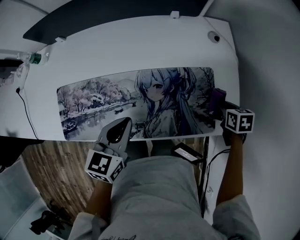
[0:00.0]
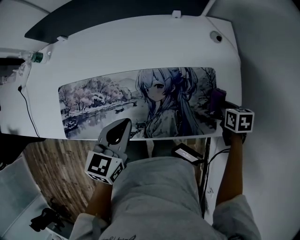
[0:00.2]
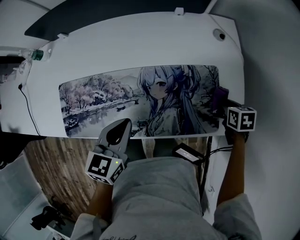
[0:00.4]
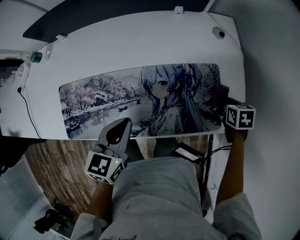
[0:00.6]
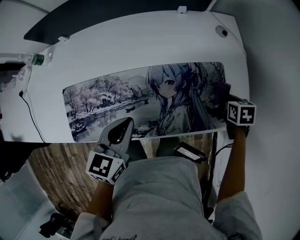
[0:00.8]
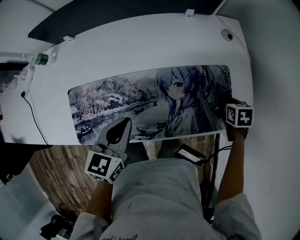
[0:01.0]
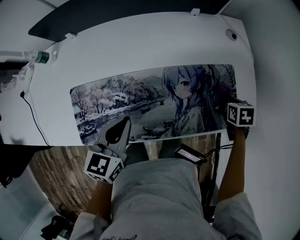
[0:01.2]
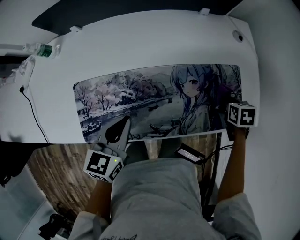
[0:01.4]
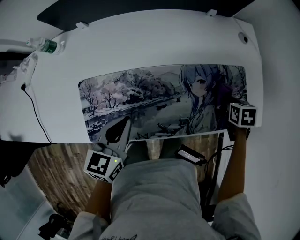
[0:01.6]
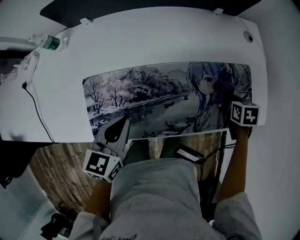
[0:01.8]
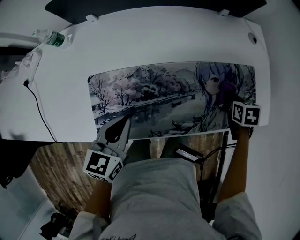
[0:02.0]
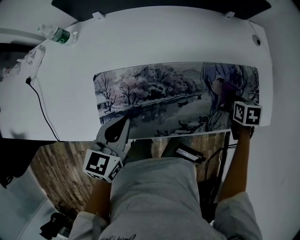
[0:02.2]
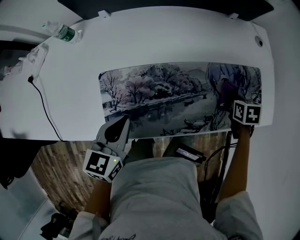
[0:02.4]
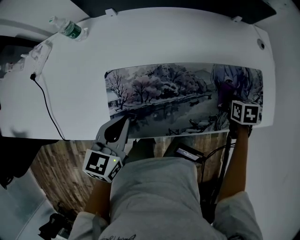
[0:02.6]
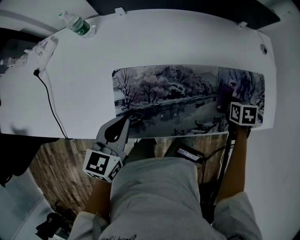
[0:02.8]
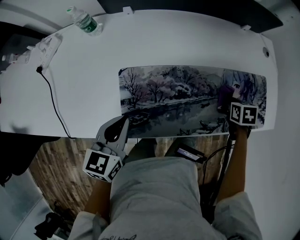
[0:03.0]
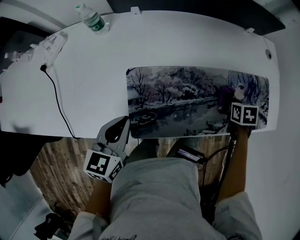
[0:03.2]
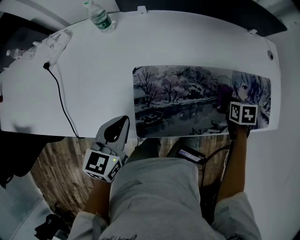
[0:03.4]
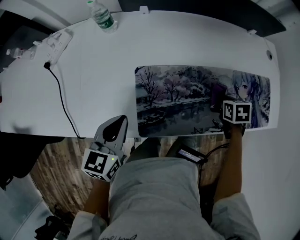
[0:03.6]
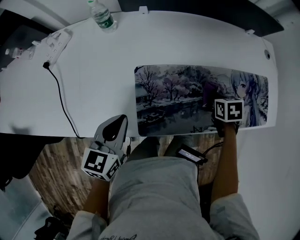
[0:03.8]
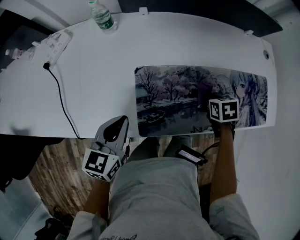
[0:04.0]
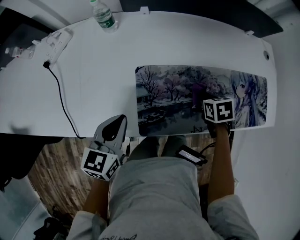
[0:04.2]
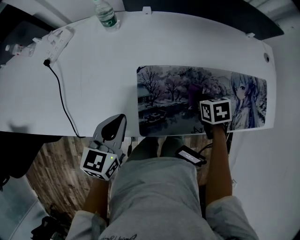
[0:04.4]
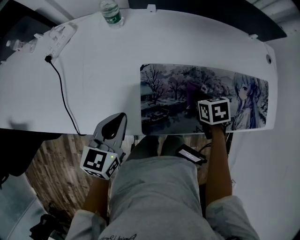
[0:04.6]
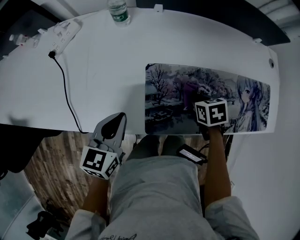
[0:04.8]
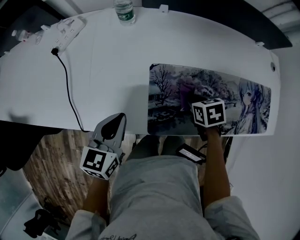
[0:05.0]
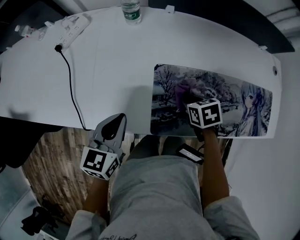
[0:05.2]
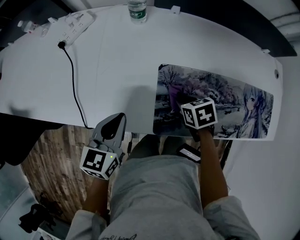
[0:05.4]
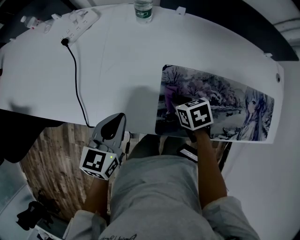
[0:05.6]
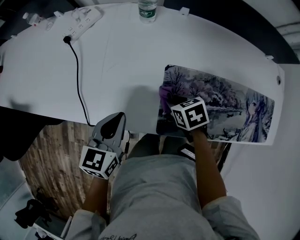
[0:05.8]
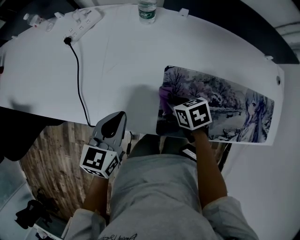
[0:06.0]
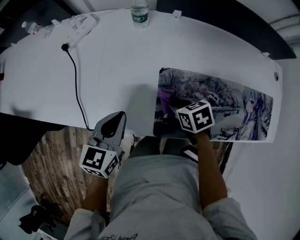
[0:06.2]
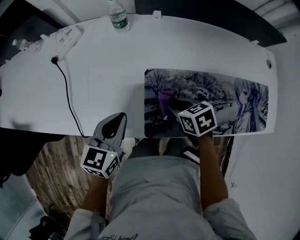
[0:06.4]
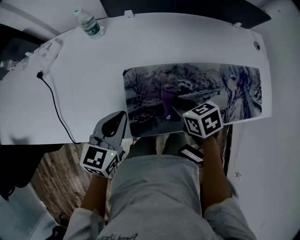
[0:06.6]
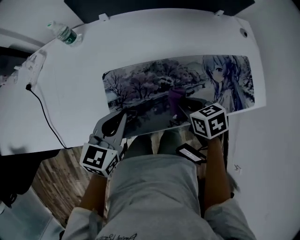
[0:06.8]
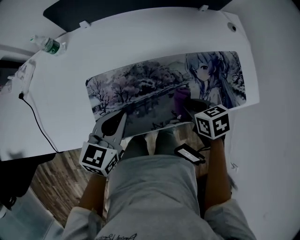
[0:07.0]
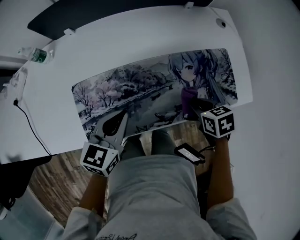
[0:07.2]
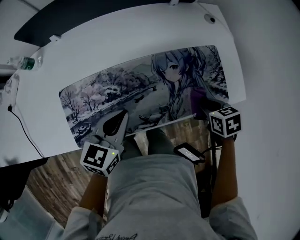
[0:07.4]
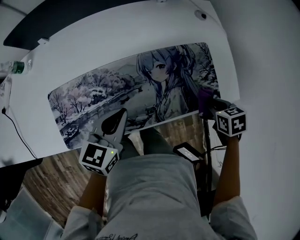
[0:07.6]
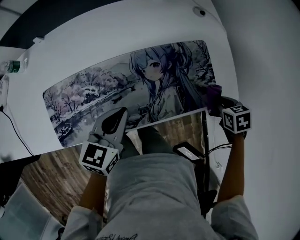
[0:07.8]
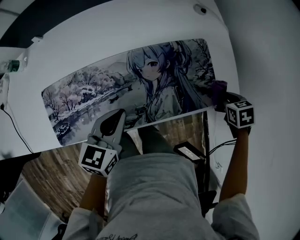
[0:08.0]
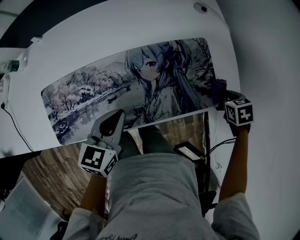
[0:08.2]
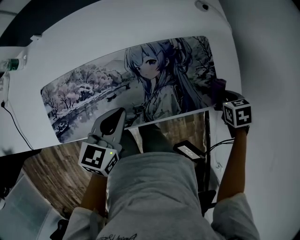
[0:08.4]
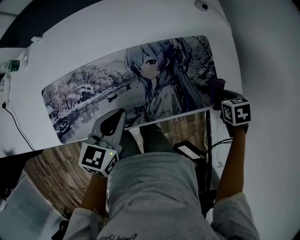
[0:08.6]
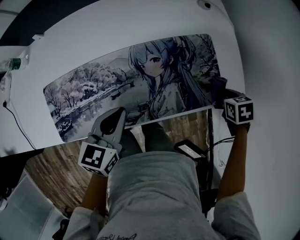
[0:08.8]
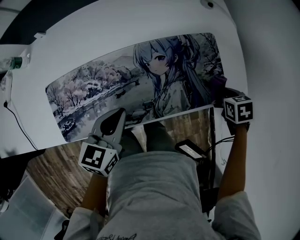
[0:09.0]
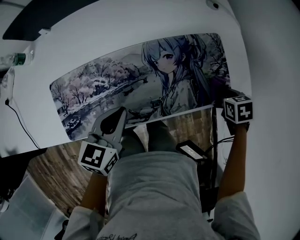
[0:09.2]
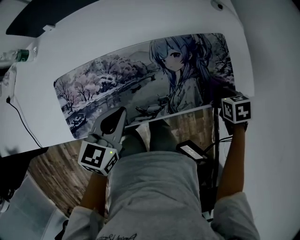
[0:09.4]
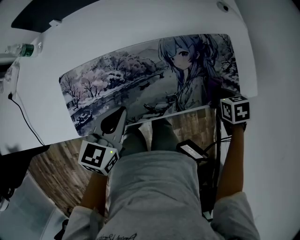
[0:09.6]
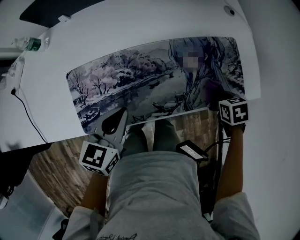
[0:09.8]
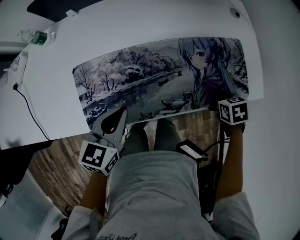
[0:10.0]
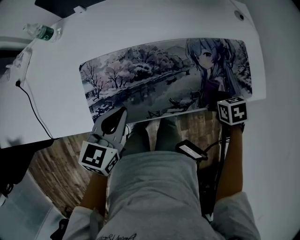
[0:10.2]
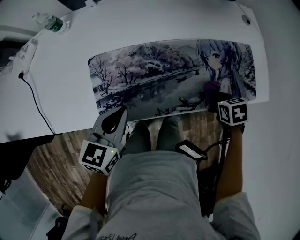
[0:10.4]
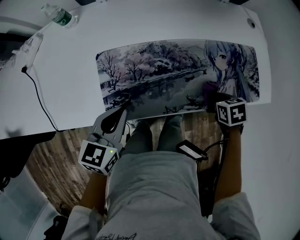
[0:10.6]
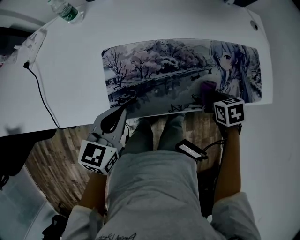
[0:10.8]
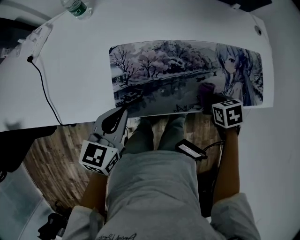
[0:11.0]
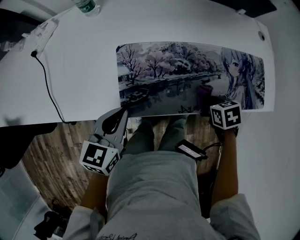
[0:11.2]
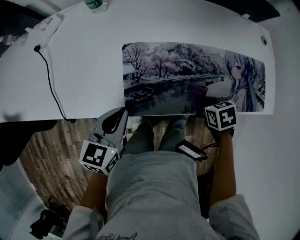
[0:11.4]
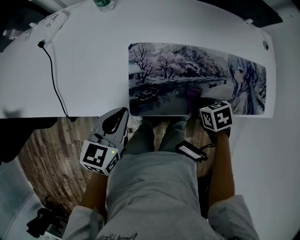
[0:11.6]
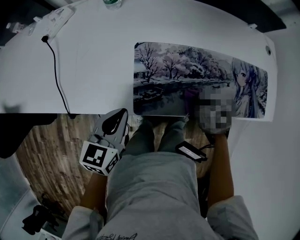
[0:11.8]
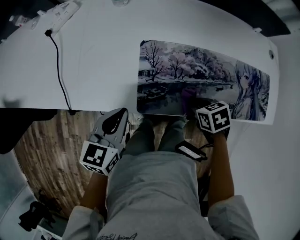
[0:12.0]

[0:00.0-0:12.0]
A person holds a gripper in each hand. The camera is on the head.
0.0 to 1.6 s: Both grippers travel together to the left, roughly 15 cm.
1.6 to 3.0 s: The two grippers go about 20 cm to the left.
3.0 to 4.4 s: The right gripper goes about 20 cm to the left. The left gripper moves to the left, roughly 10 cm.
4.4 to 6.0 s: The right gripper moves to the left, about 20 cm, and rotates about 20 degrees, while the left gripper travels to the left by about 10 cm.
6.0 to 7.6 s: The two grippers travel together, some 60 cm. The right gripper swivels about 30 degrees. Meanwhile the left gripper changes its angle by some 30 degrees.
9.0 to 10.4 s: Both grippers travel together to the left, some 25 cm.
10.4 to 12.0 s: The left gripper moves some 20 cm. The right gripper moves about 25 cm, and swivels about 20 degrees.

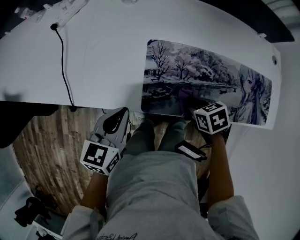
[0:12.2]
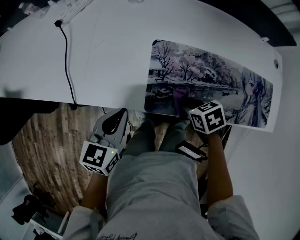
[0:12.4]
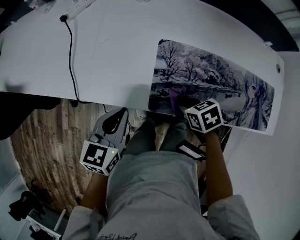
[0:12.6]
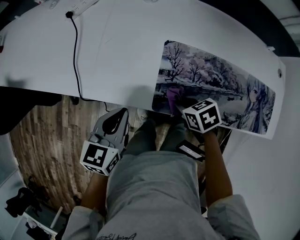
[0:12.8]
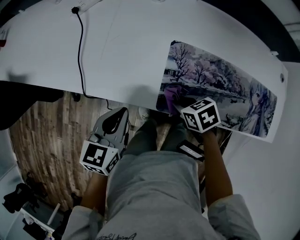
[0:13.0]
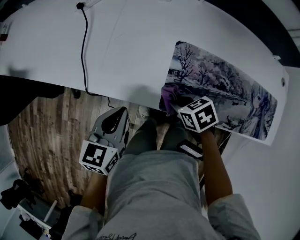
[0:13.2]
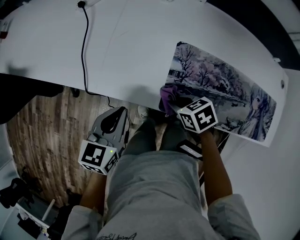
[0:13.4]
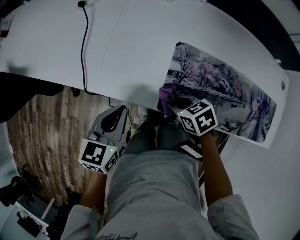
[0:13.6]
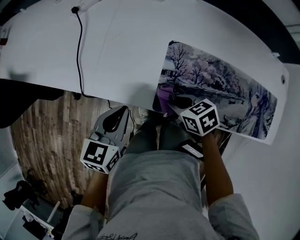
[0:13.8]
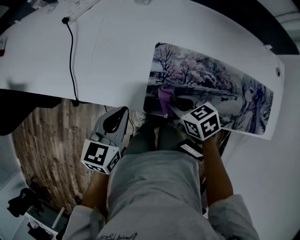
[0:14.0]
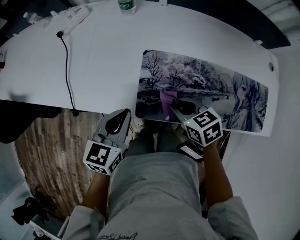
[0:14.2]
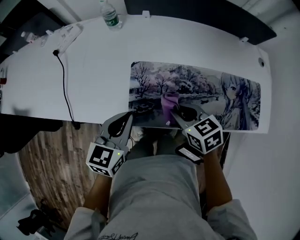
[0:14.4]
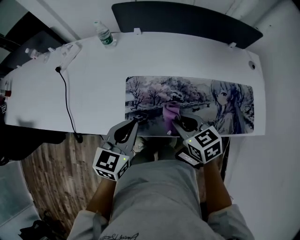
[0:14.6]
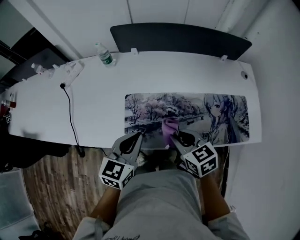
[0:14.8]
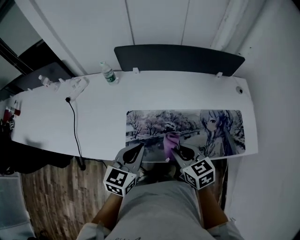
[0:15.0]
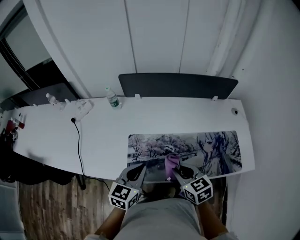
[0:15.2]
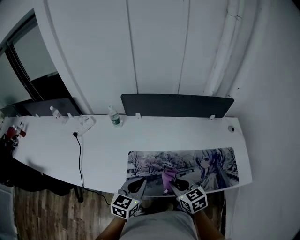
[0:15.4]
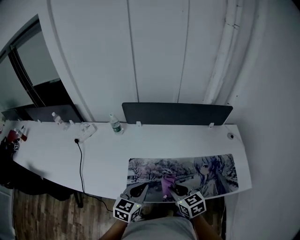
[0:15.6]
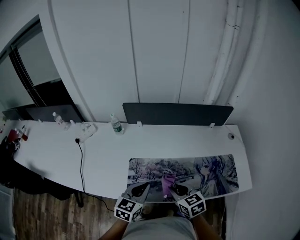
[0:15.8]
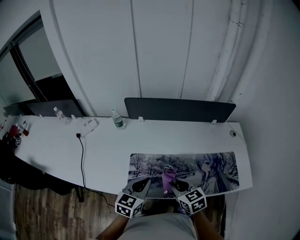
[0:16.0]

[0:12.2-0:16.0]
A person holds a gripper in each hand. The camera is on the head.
12.2 to 13.4 s: The left gripper shifts roughly 10 cm to the left. The right gripper travels to the left and forward by some 15 cm.
13.4 to 14.8 s: The right gripper changes place by some 25 cm, and swivels roughly 40 degrees, while the left gripper ends up some 25 cm from where it was, and turns by some 20 degrees.
14.8 to 16.0 s: The left gripper moves approximately 5 cm.

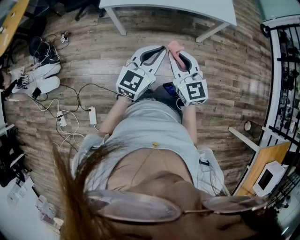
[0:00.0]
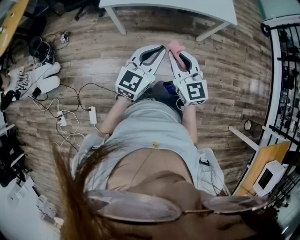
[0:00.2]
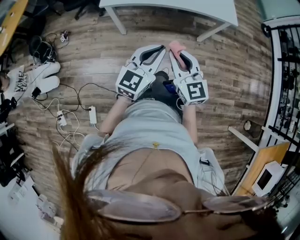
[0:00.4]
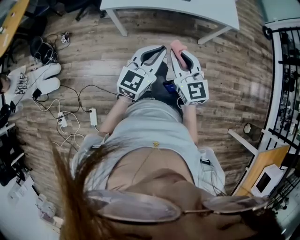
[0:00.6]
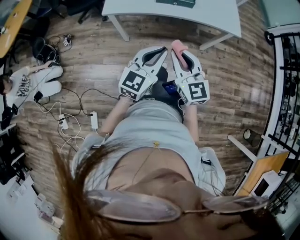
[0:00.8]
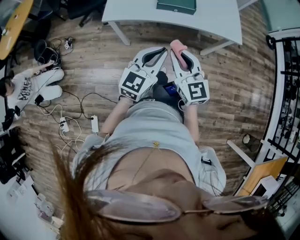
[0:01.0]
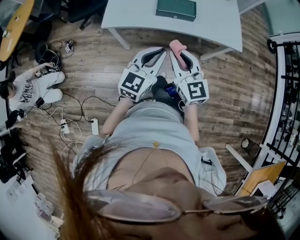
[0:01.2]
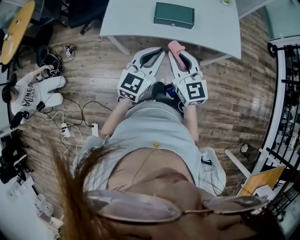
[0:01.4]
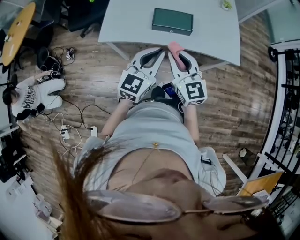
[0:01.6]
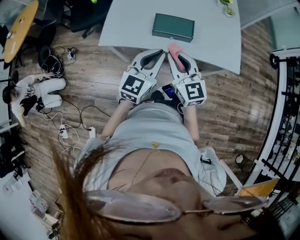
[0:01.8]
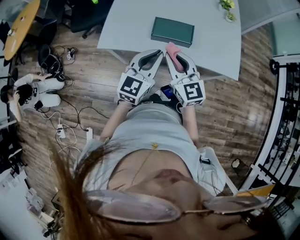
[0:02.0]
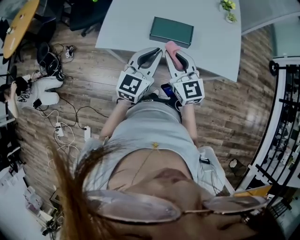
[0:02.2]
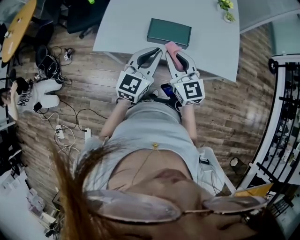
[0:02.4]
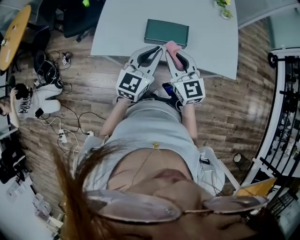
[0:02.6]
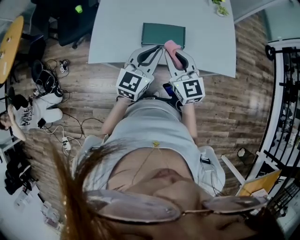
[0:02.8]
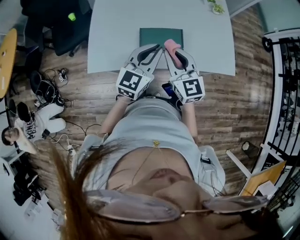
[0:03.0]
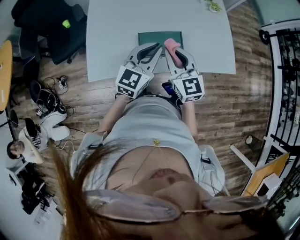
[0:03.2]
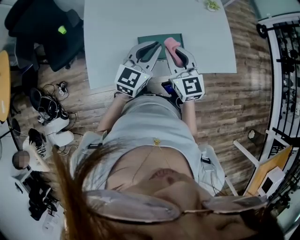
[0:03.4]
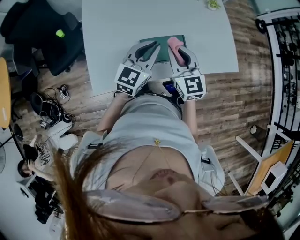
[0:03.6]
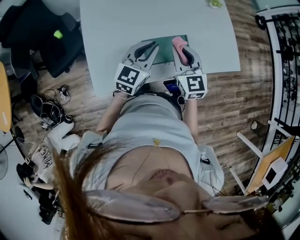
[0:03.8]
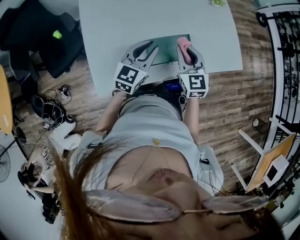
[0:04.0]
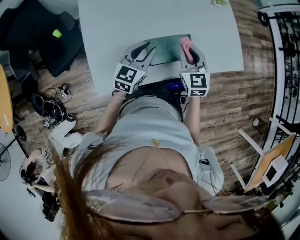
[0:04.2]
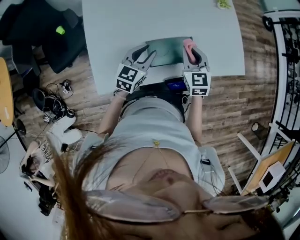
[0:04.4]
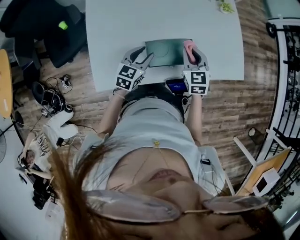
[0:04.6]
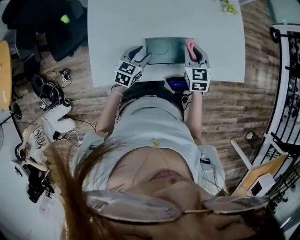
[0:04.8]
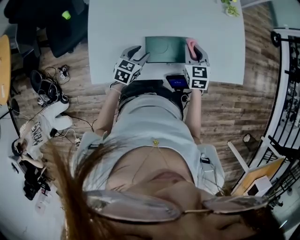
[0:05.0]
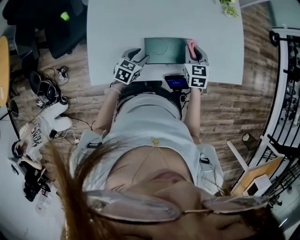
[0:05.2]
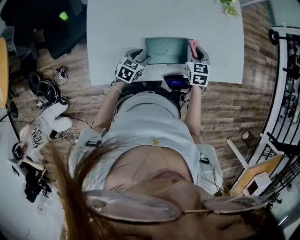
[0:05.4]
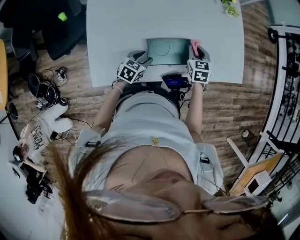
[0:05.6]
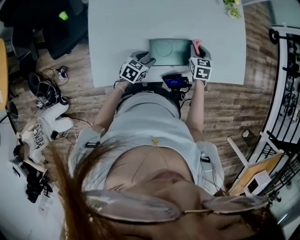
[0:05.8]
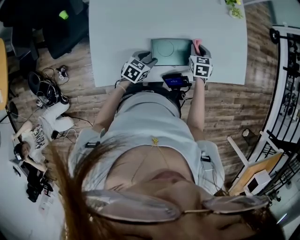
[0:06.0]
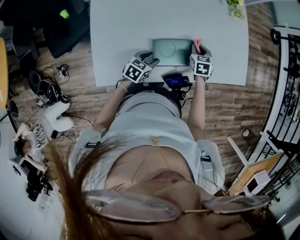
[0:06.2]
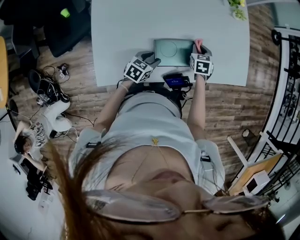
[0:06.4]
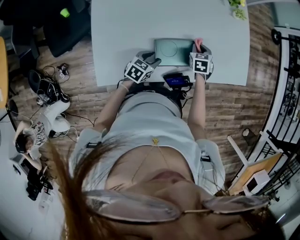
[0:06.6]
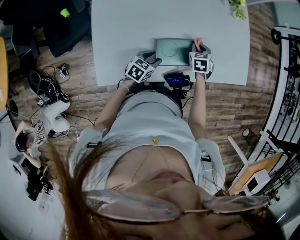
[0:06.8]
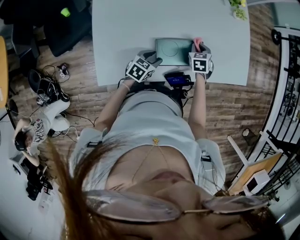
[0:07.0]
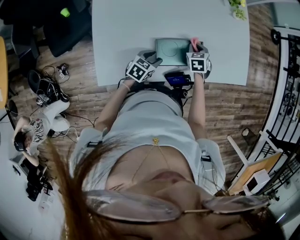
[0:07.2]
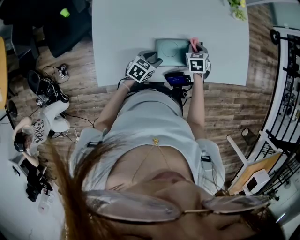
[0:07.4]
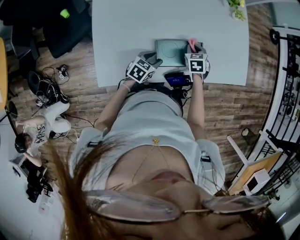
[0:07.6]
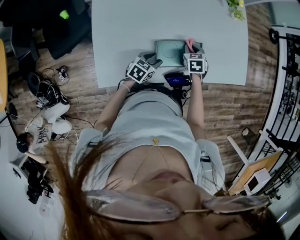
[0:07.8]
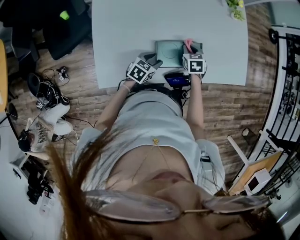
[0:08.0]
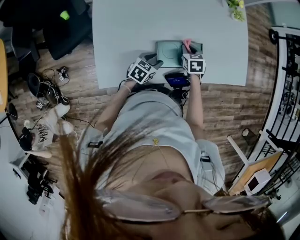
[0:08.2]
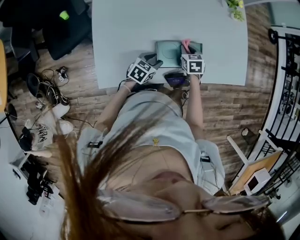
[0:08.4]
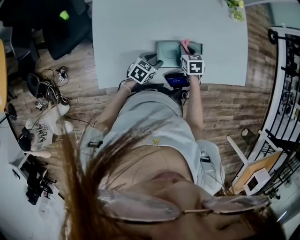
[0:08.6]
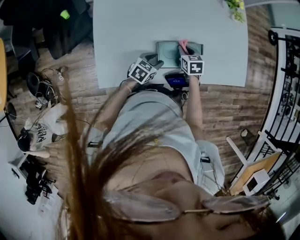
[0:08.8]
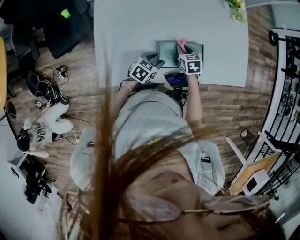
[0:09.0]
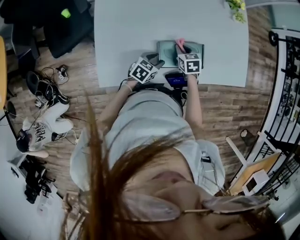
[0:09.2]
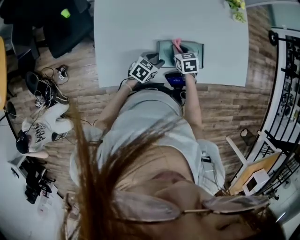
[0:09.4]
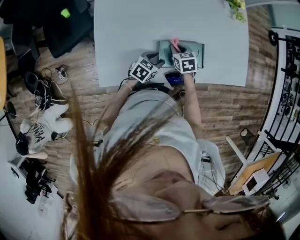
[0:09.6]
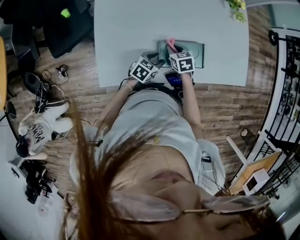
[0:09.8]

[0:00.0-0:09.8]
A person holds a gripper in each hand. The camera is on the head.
0.0 to 1.4 s: Both grippers move forward, approximately 20 cm.
1.4 to 2.8 s: The two grippers go approximately 15 cm forward.
2.8 to 4.2 s: The right gripper goes approximately 15 cm forward and downward, and changes its angle by roughly 30 degrees; the left gripper travels forward, downward and to the left by some 20 cm, and turns by about 20 degrees.
4.2 to 5.6 s: The right gripper goes about 15 cm downward, forward and to the right; the left gripper shifts about 15 cm downward, rotates about 30 degrees, and opens its fingers.
5.6 to 7.0 s: The right gripper heads downward, covering approximately 5 cm.
7.0 to 8.4 s: The right gripper ends up some 5 cm from where it was.
8.4 to 9.8 s: The right gripper heads to the left, covering approximately 10 cm.
